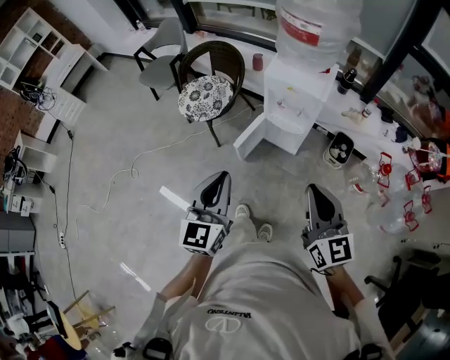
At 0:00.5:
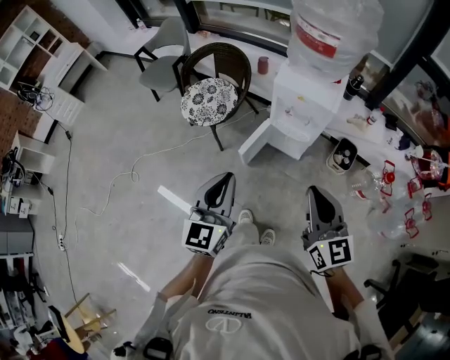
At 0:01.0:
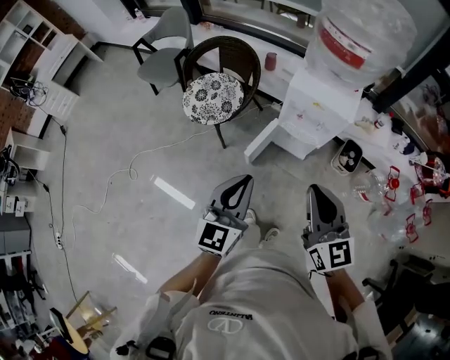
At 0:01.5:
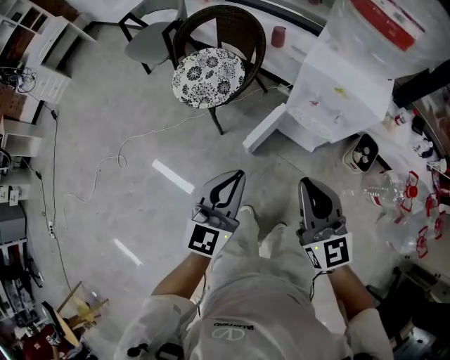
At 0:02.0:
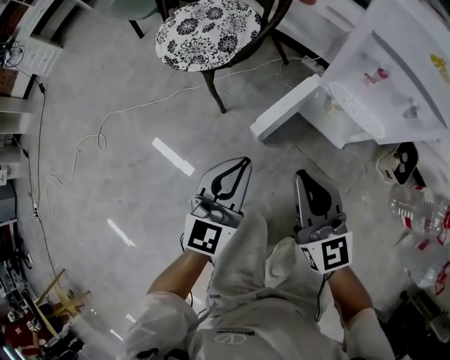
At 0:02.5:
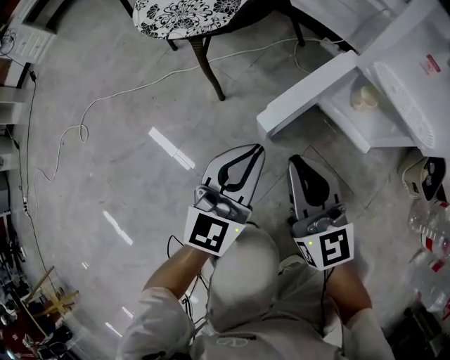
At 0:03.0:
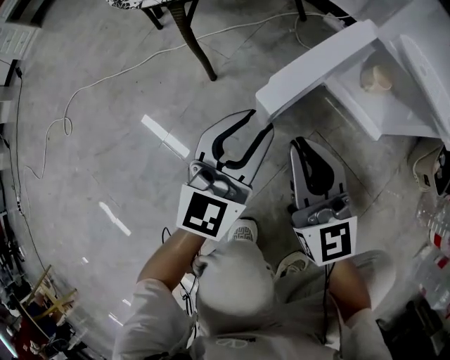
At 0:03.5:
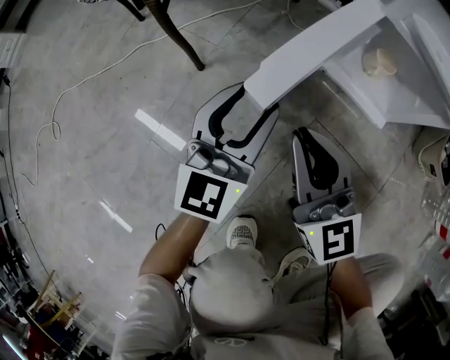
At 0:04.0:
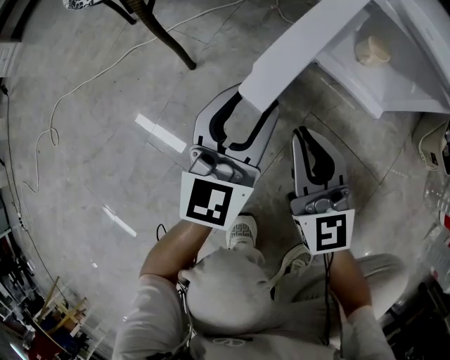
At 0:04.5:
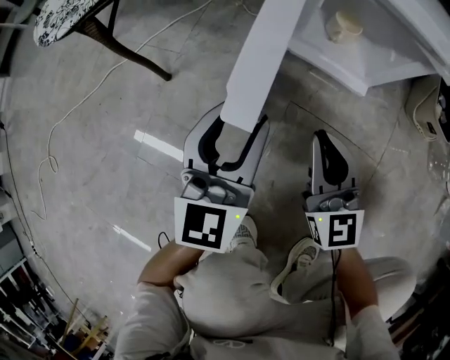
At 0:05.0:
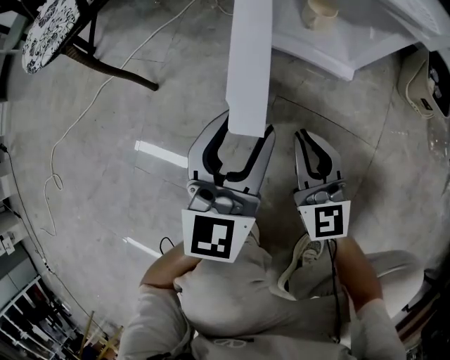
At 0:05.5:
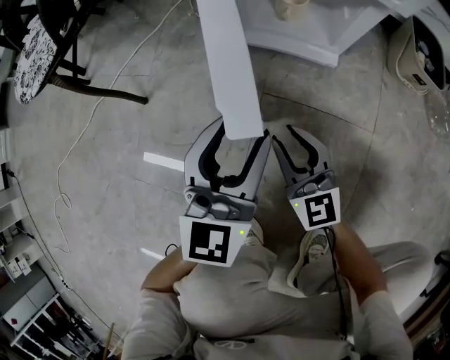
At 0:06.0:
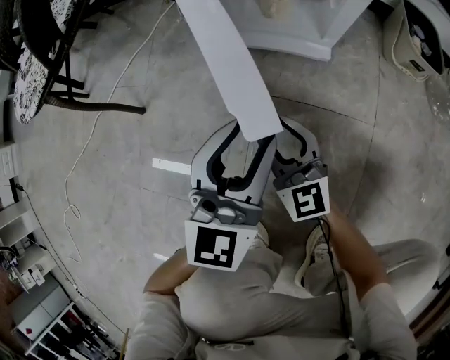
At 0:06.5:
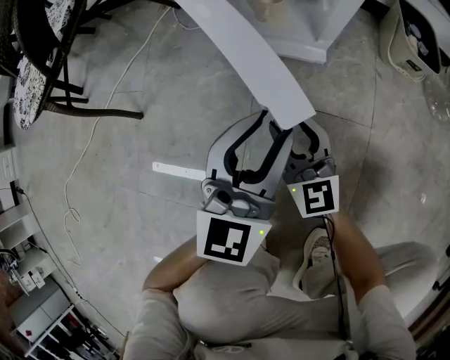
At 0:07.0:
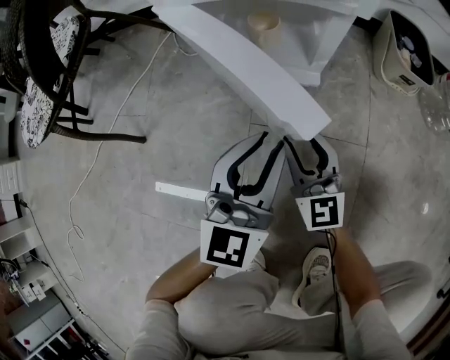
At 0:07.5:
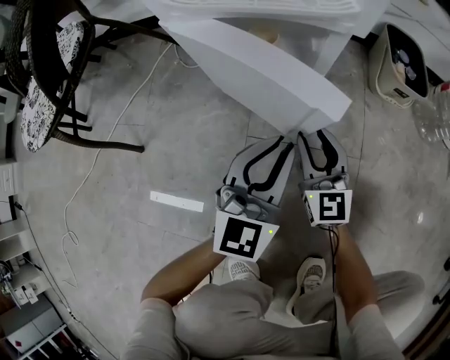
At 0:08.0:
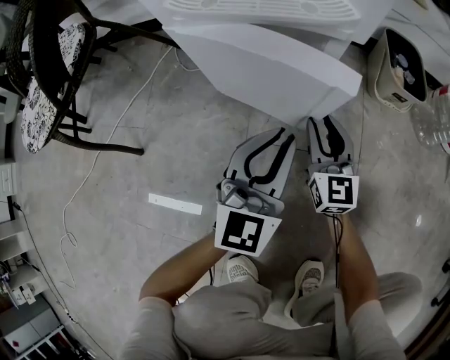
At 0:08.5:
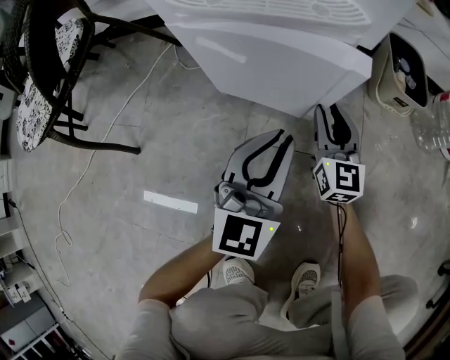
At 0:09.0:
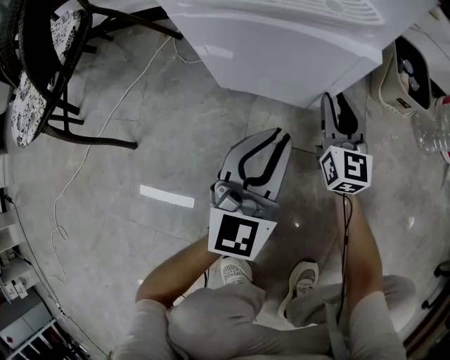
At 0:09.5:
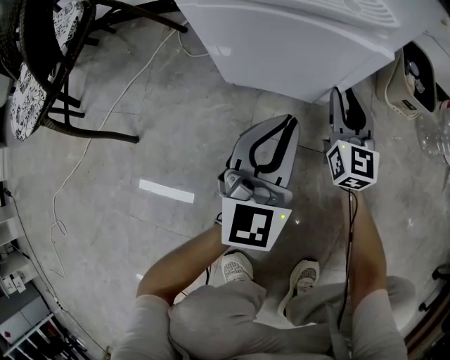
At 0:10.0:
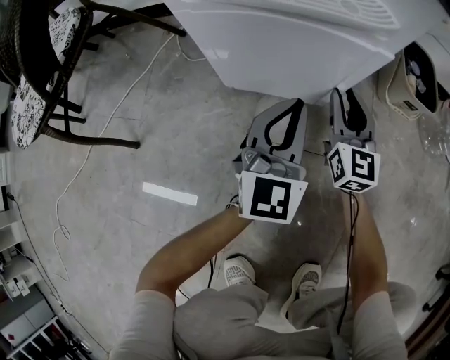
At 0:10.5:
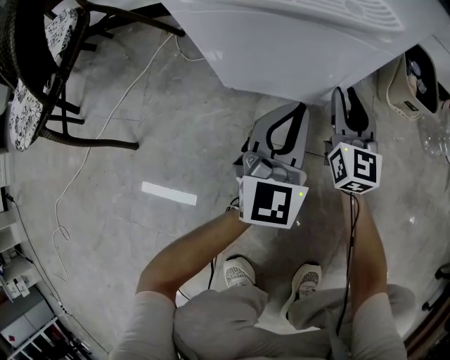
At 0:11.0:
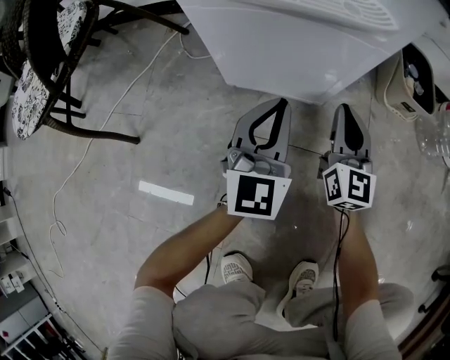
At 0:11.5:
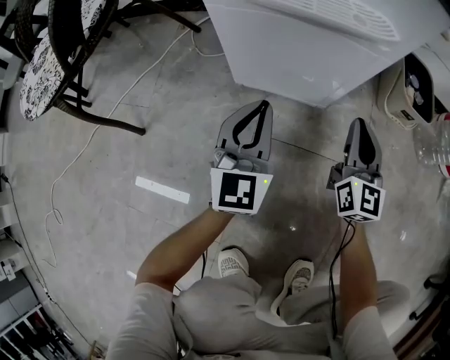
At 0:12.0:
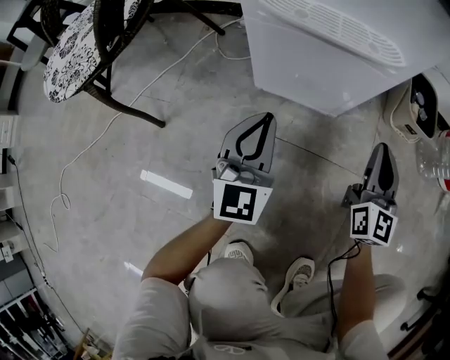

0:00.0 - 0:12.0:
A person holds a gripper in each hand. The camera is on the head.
0:00.0 - 0:02.0: Both grippers move downward and forward, about 50 cm.
0:02.0 - 0:04.0: Both grippers move downward, some 30 cm. The left gripper opens.
0:04.0 - 0:06.0: The left gripper goes about 15 cm to the right, and changes its angle by some 20 degrees; the right gripper moves to the right and downward, some 15 cm, and opens its fingers.
0:06.0 - 0:08.0: The right gripper is displaced to the right and forward by roughly 20 cm, and turns by roughly 20 degrees; the left gripper heads to the right and forward, covering approximately 10 cm, and closes up.
0:08.0 - 0:10.0: The two grippers go approximately 5 cm forward.
0:10.0 - 0:12.0: The right gripper heads upward and backward, covering about 15 cm, and closes, while the left gripper moves to the left and backward, some 10 cm.

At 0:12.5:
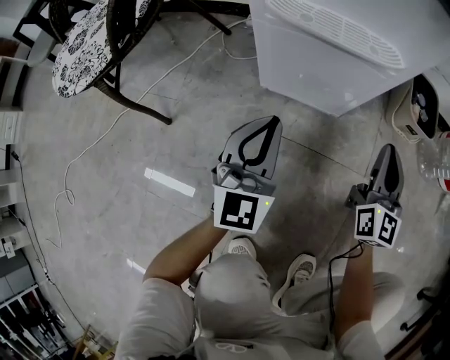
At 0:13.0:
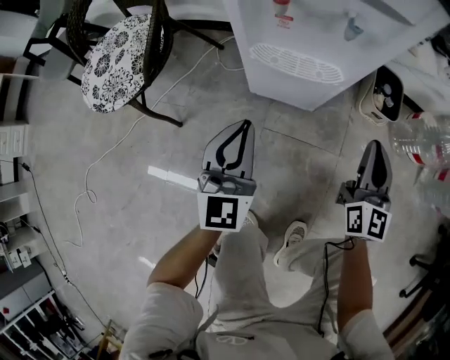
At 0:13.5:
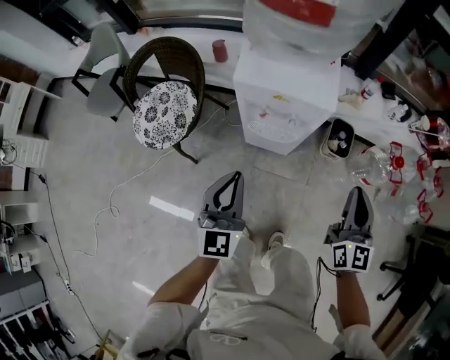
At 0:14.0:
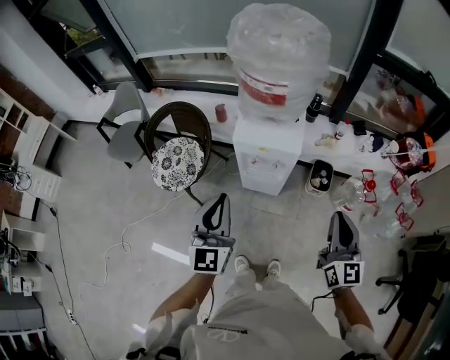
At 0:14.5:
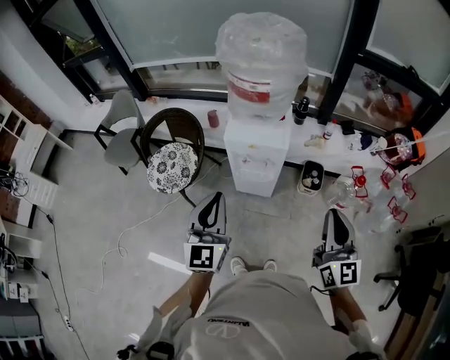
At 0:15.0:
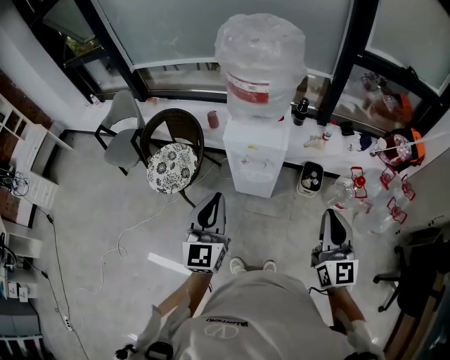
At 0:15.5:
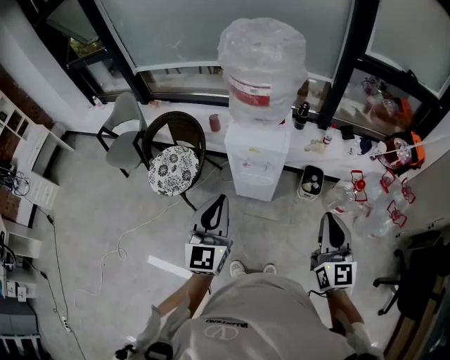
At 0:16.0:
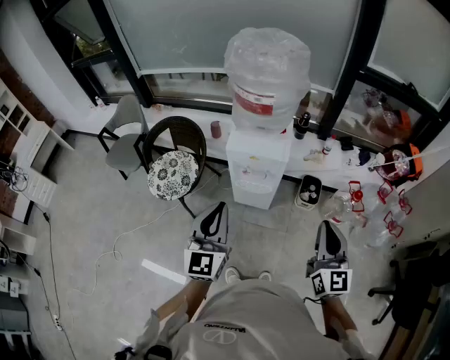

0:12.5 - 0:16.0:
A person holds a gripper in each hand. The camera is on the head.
0:12.5 - 0:14.5: Both grippers travel together upward, roughly 80 cm.
0:14.5 - 0:16.0: The grippers make only small movements.

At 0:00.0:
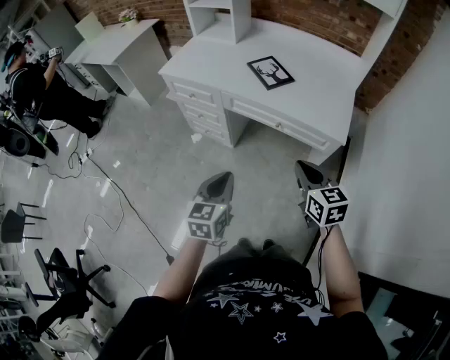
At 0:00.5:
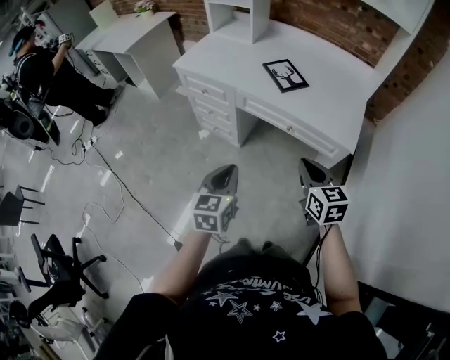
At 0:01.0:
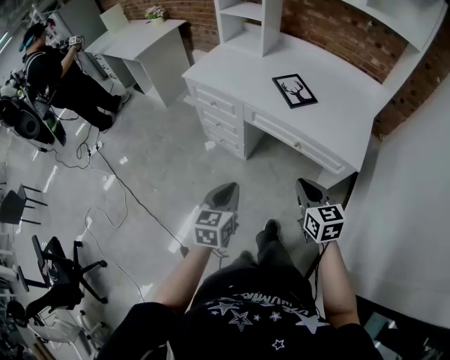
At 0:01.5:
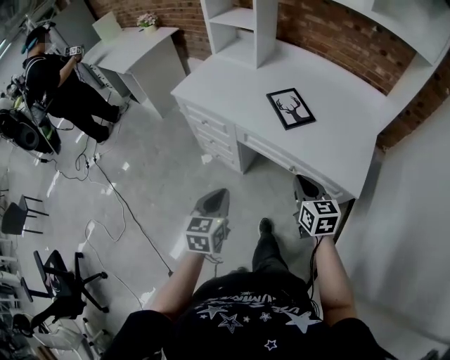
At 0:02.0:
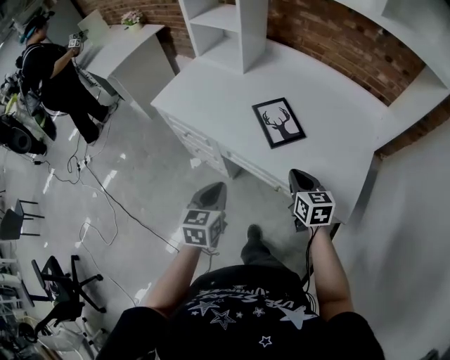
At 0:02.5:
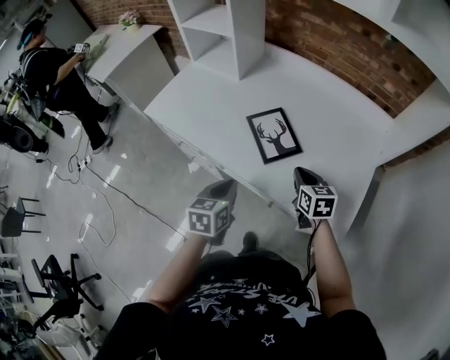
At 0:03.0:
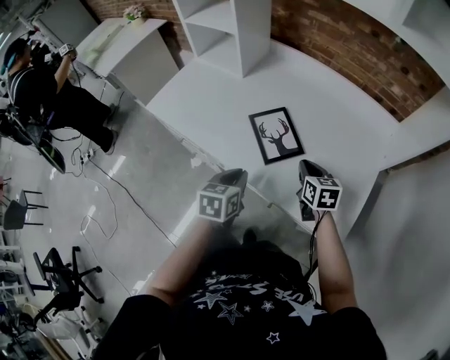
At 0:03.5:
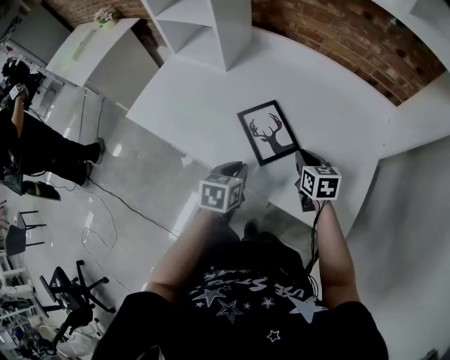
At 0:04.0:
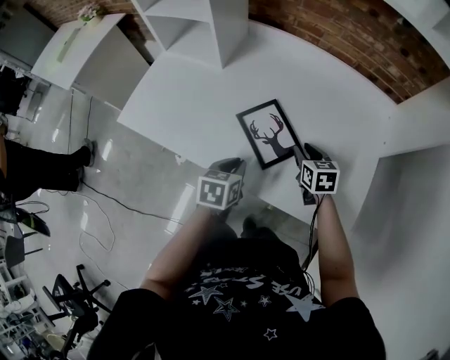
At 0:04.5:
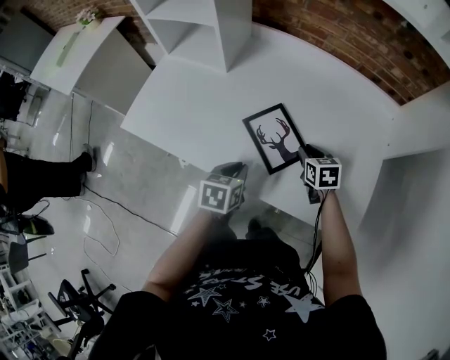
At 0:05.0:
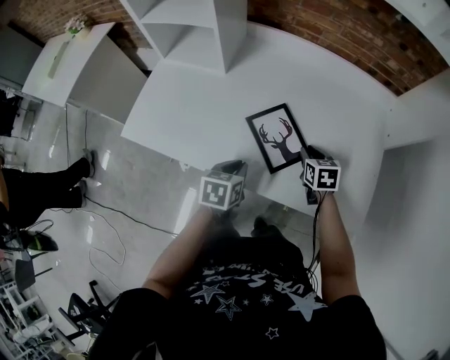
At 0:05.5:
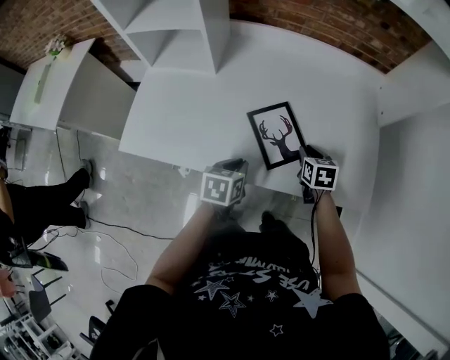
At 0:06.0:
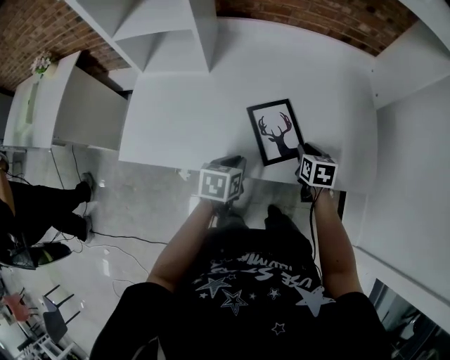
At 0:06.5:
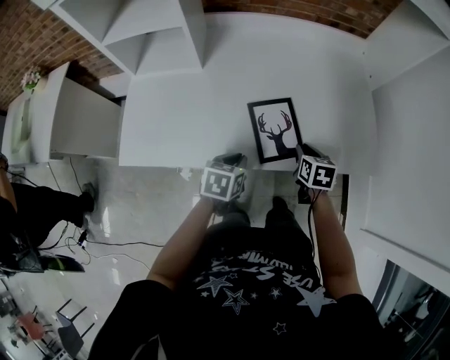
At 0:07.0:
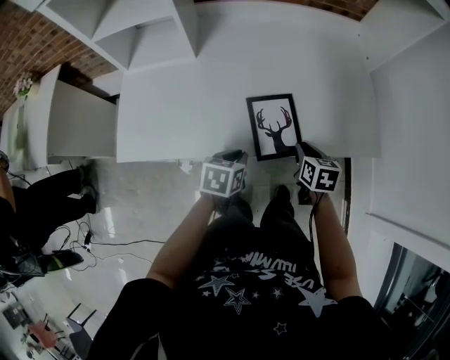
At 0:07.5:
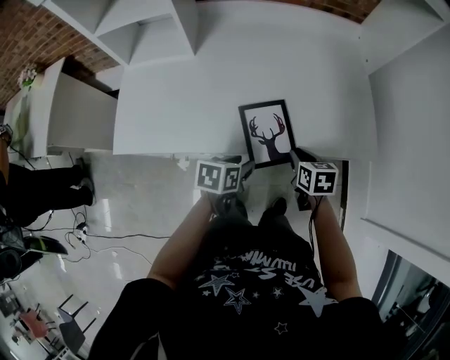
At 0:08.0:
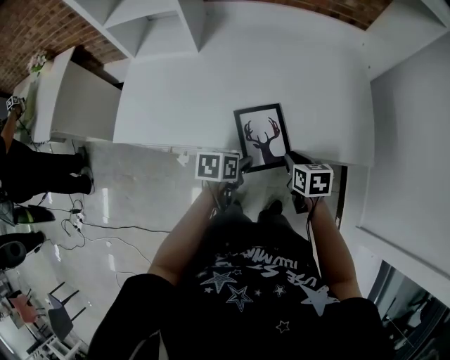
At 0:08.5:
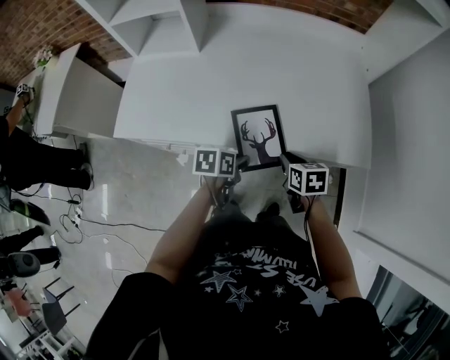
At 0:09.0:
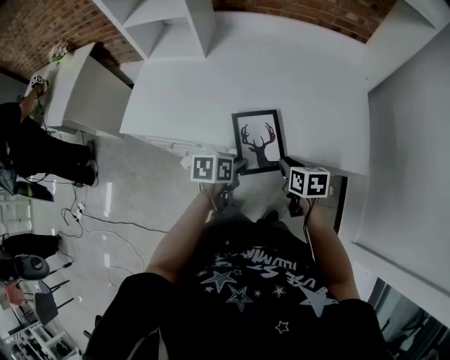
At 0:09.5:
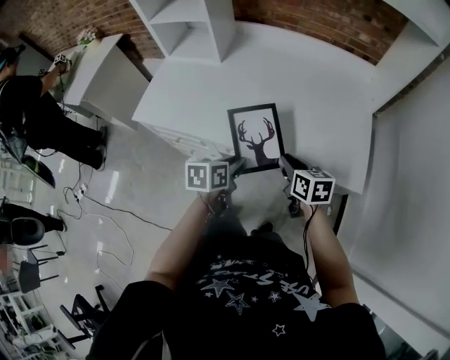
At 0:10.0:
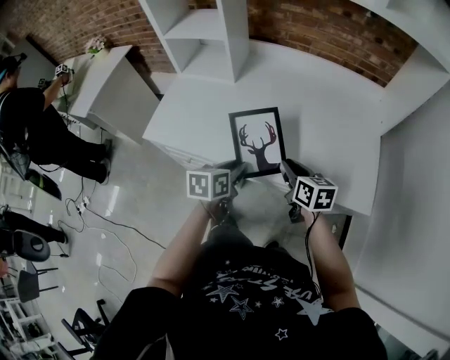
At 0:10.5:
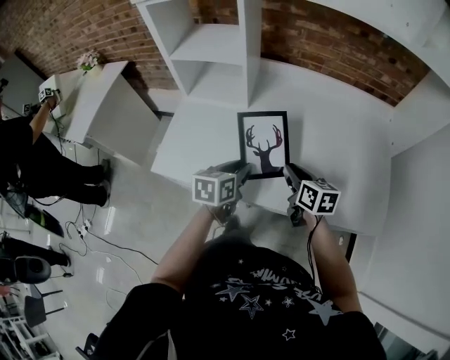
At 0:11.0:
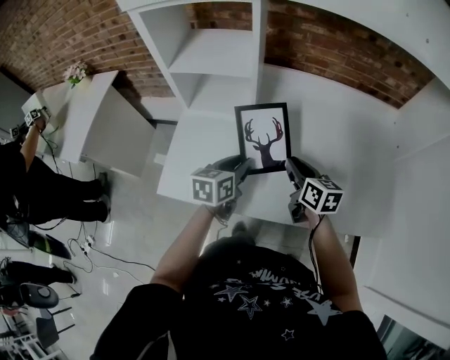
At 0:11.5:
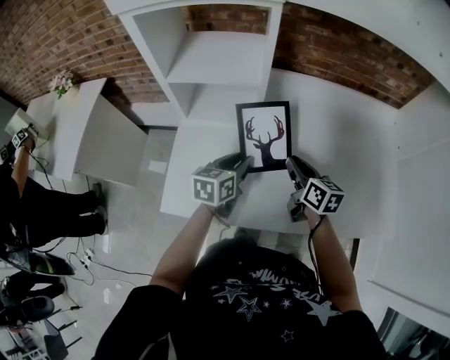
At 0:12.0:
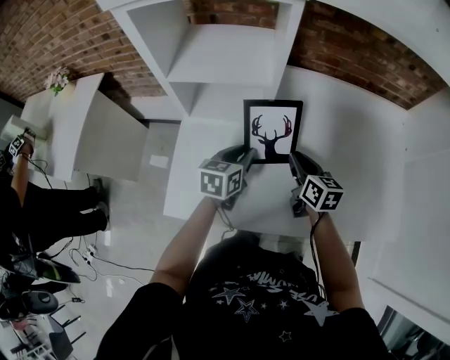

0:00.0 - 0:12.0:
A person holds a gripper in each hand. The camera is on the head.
0:00.0 - 0:02.0: Both grippers travel together forward, roughly 25 cm.
0:02.0 - 0:04.0: The grippers both shift forward by roughly 20 cm. The left gripper swivels some 20 degrees. The right gripper opens up.
0:04.0 - 0:06.0: The left gripper shifts by approximately 5 cm, and swivels approximately 20 degrees; the right gripper changes place by approximately 10 cm, and changes its angle by about 30 degrees.
0:06.0 - 0:08.0: The right gripper travels backward by about 15 cm. The left gripper moves backward and to the right, approximately 10 cm, and opens.
0:08.0 - 0:10.0: The right gripper shifts roughly 10 cm upward and to the left, and rotates roughly 30 degrees; the left gripper shifts some 10 cm upward, and swivels about 30 degrees.
0:10.0 - 0:12.0: The grippers both shift forward and to the left by some 30 cm.
